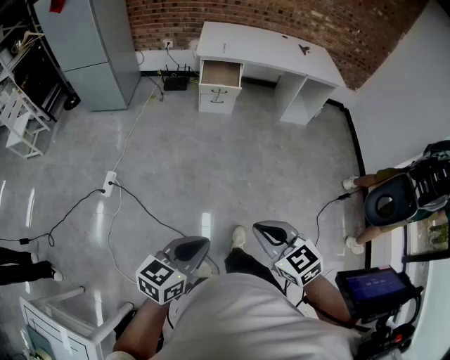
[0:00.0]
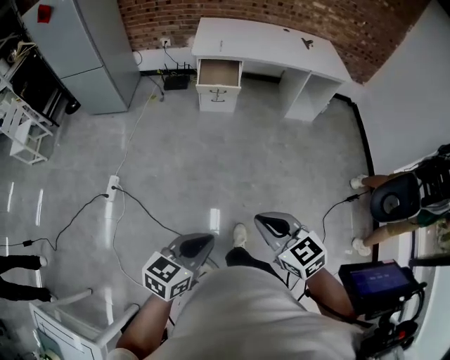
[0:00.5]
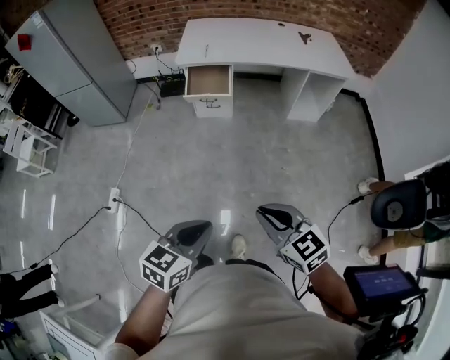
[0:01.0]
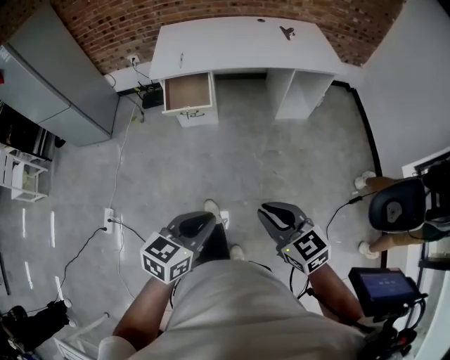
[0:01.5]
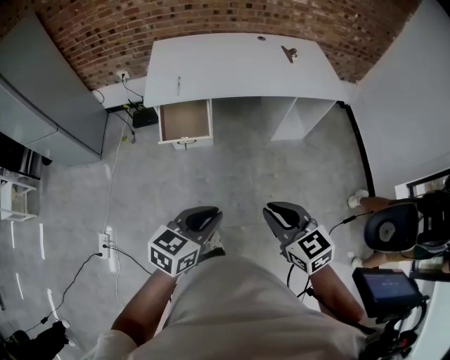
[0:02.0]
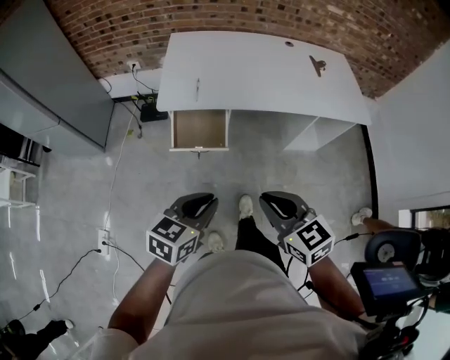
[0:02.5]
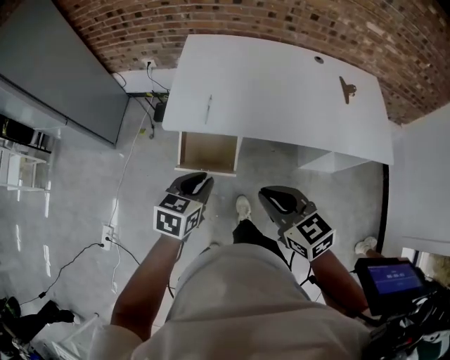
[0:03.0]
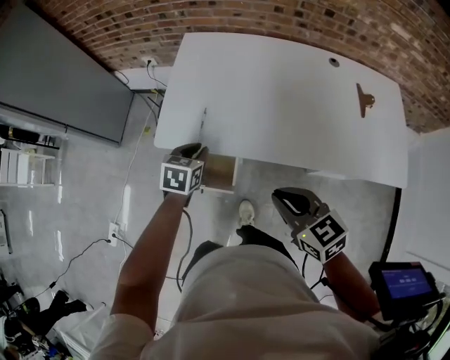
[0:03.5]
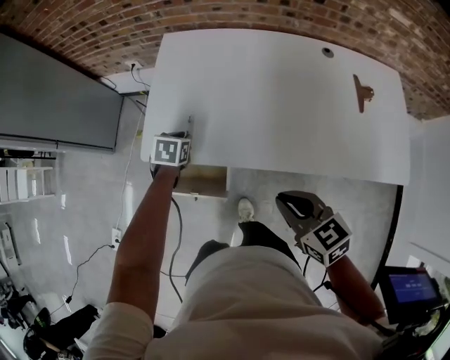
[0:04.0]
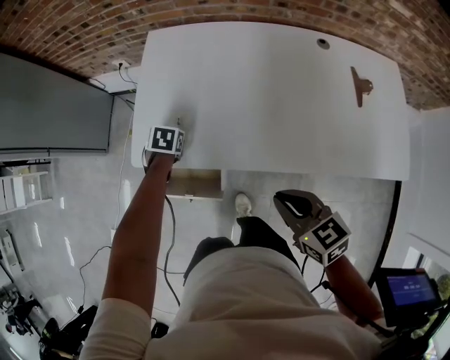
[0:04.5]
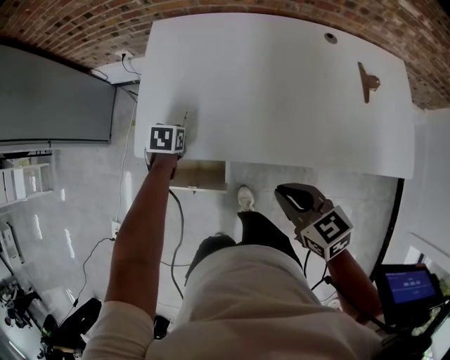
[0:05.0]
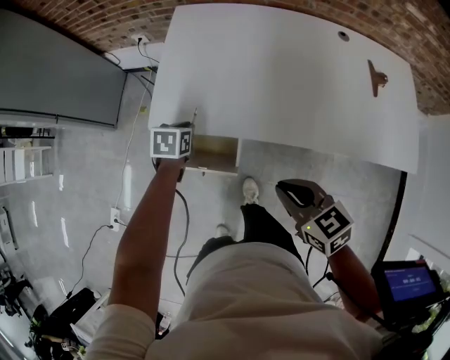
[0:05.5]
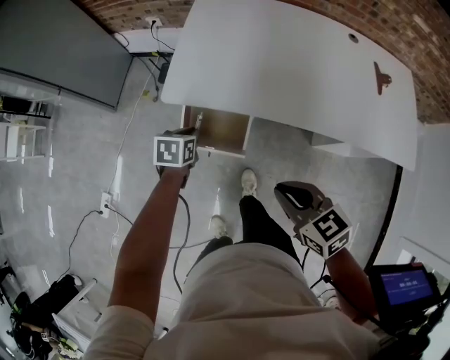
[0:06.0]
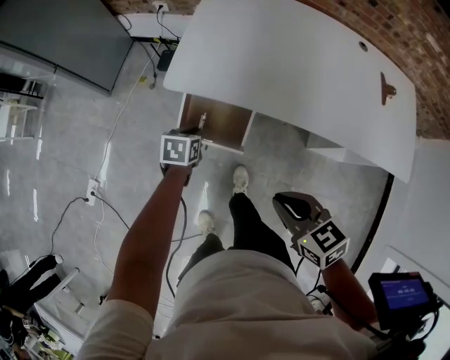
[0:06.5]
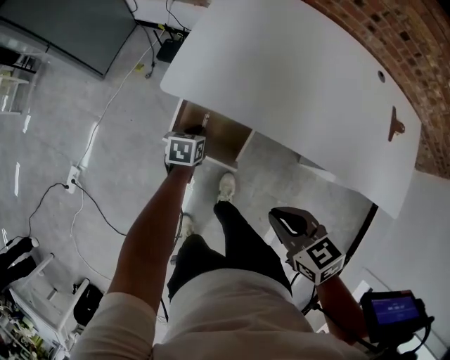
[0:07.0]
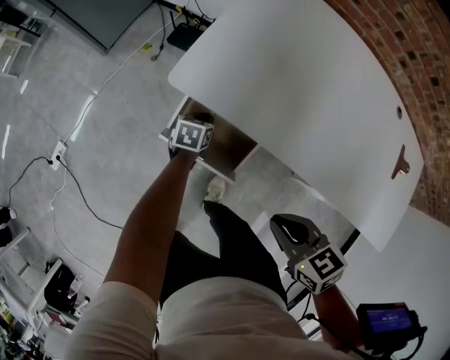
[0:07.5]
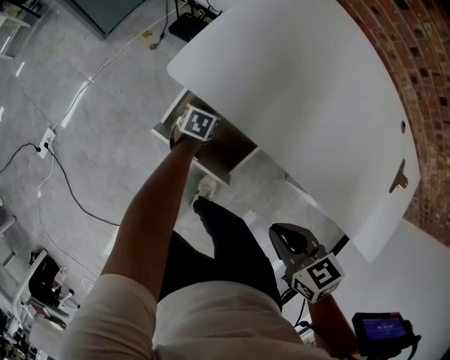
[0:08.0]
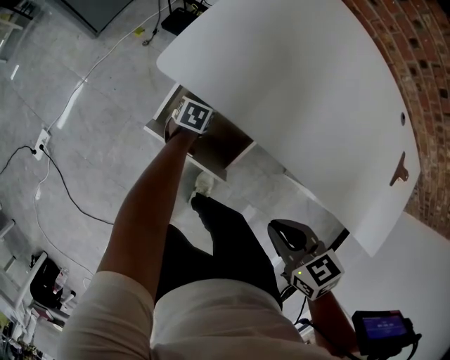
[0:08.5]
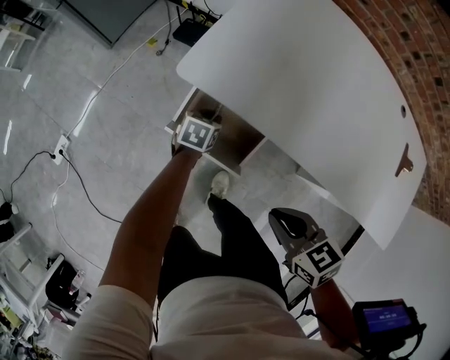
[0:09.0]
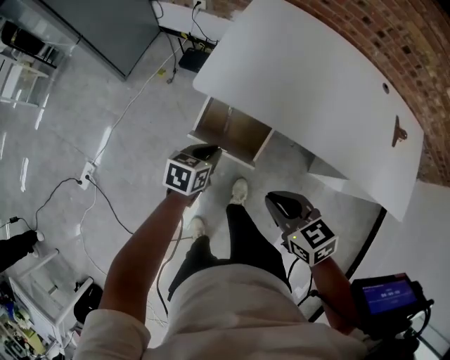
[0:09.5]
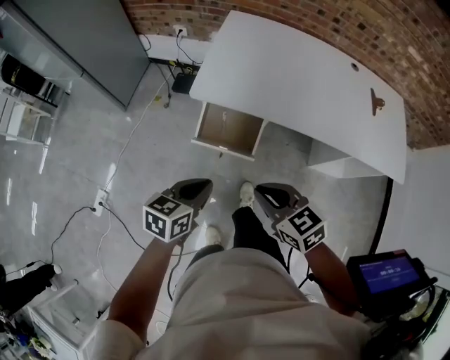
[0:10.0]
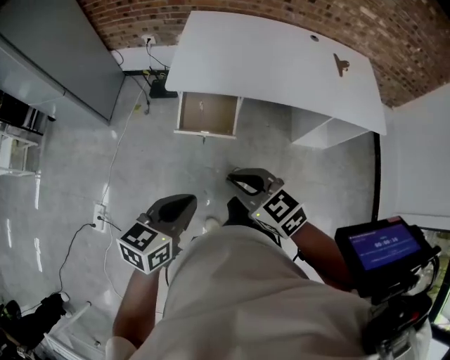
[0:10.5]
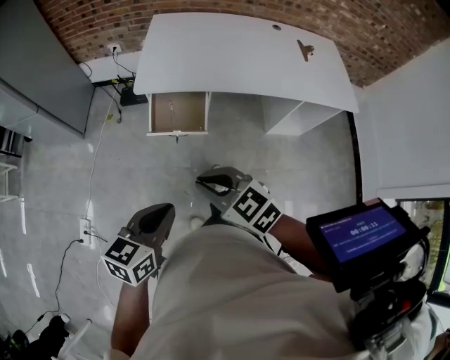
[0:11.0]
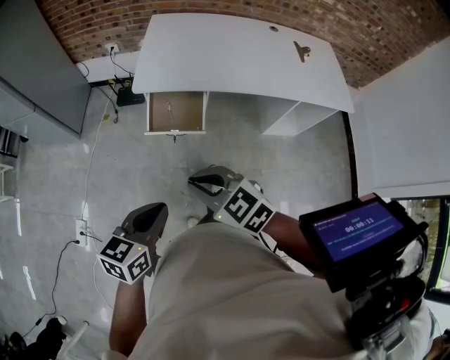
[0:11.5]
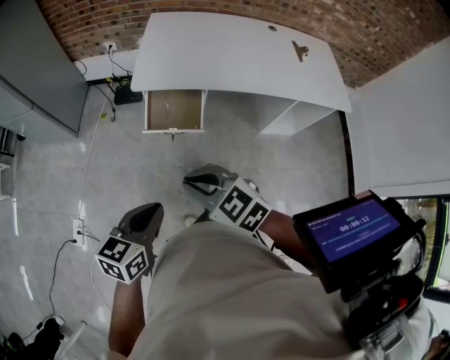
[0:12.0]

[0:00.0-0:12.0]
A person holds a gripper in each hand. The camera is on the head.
0:00.0 to 0:02.0: Both grippers are carried forward, roughly 60 cm.
0:02.0 to 0:04.0: The two grippers travel together, some 60 cm. The left gripper tips its fingers downward by some 40 degrees.
0:04.0 to 0:06.0: The right gripper moves to the left and backward, roughly 15 cm. The left gripper moves backward and to the left, some 20 cm.
0:06.0 to 0:08.0: The left gripper goes about 30 cm downward and forward, while the right gripper travels downward and forward by about 15 cm, and swivels approximately 20 degrees.
0:08.0 to 0:10.0: The right gripper moves to the left, upward and backward, approximately 25 cm, and swivels about 20 degrees, while the left gripper goes some 50 cm upward and backward, and turns by roughly 30 degrees.
0:10.0 to 0:12.0: The left gripper shifts approximately 15 cm backward, while the right gripper goes roughly 15 cm backward and to the left.

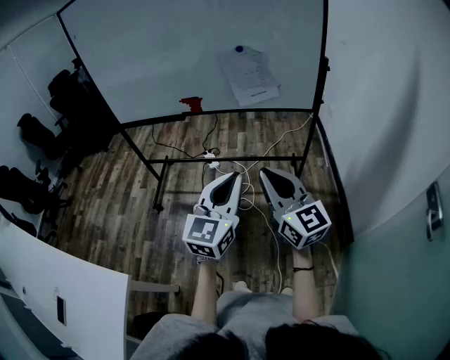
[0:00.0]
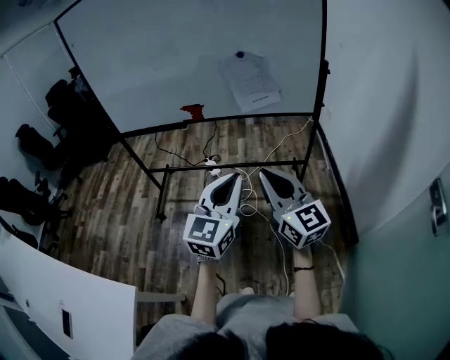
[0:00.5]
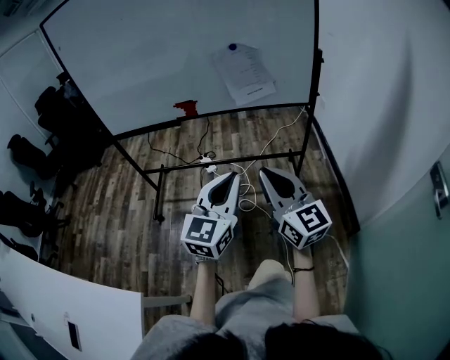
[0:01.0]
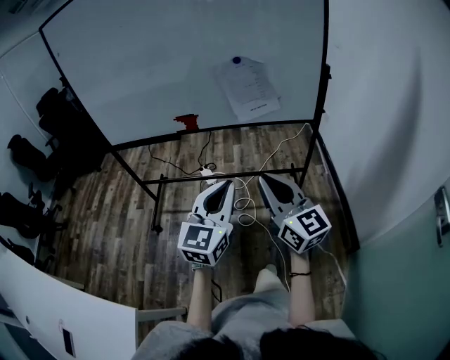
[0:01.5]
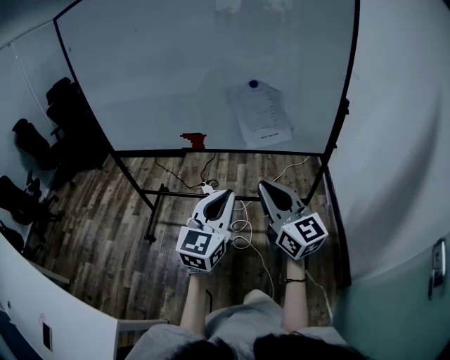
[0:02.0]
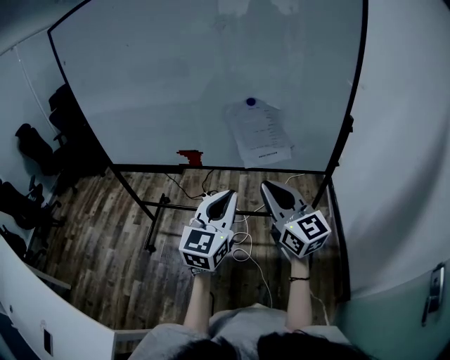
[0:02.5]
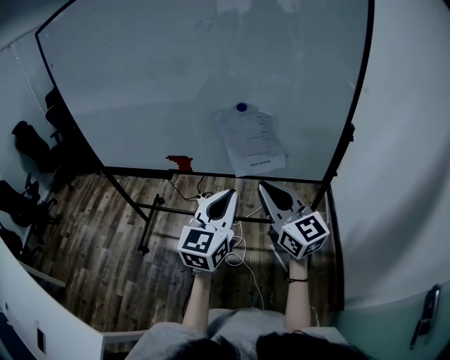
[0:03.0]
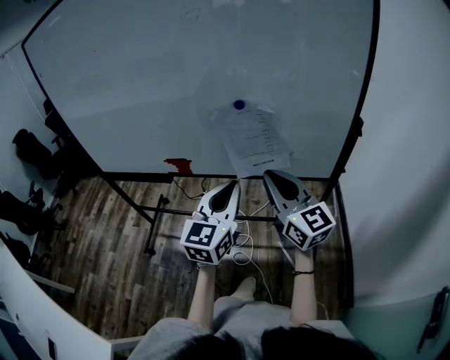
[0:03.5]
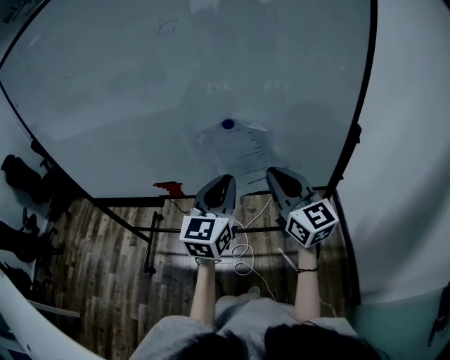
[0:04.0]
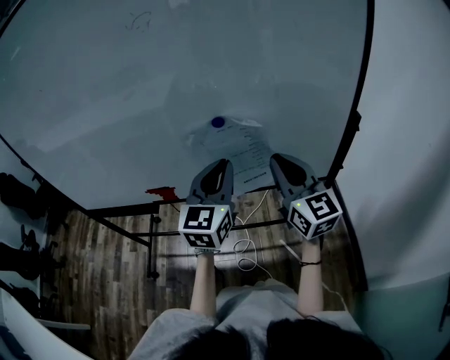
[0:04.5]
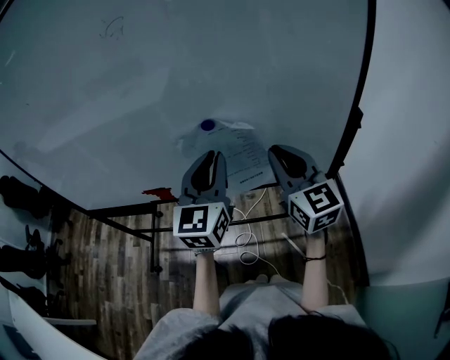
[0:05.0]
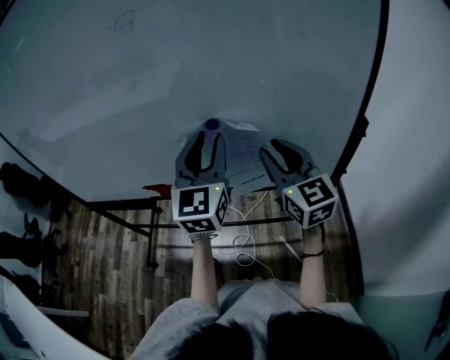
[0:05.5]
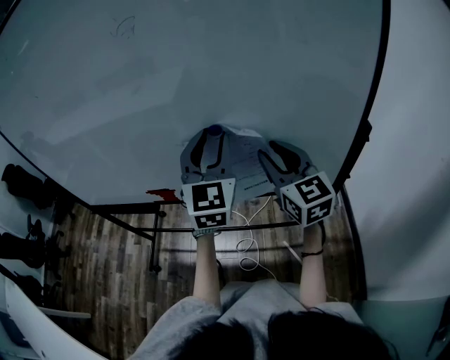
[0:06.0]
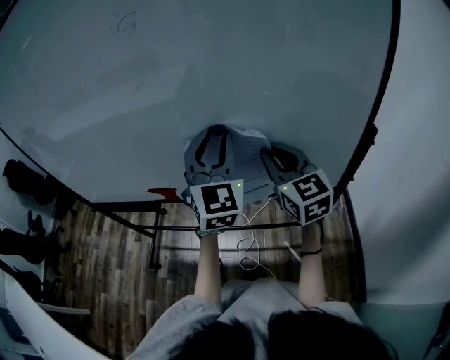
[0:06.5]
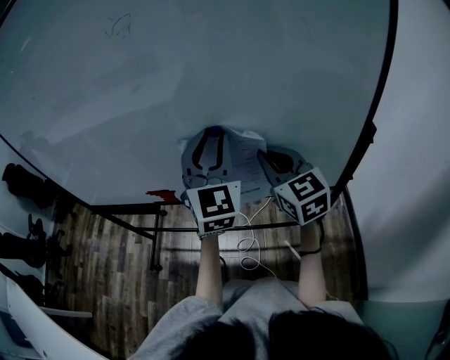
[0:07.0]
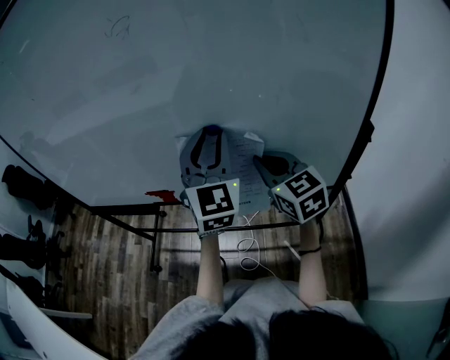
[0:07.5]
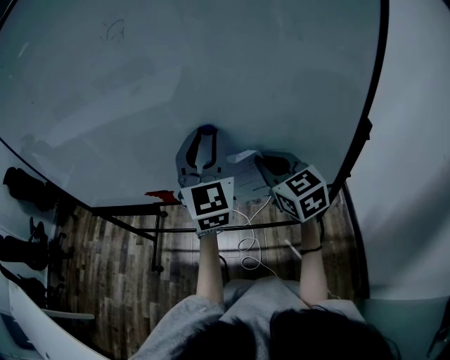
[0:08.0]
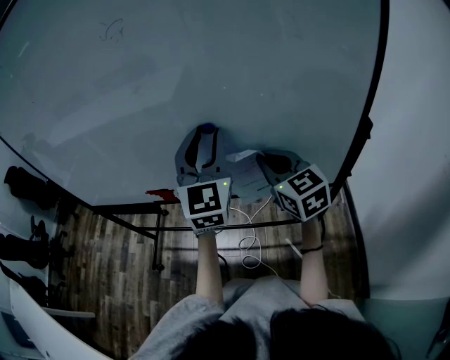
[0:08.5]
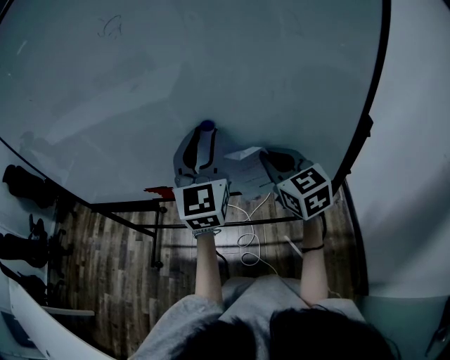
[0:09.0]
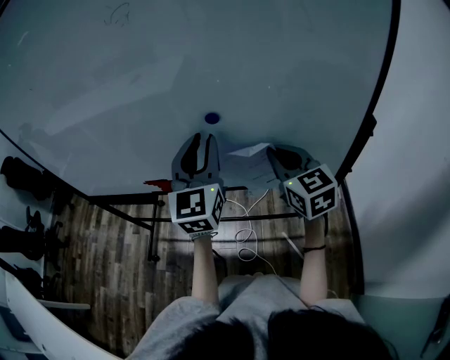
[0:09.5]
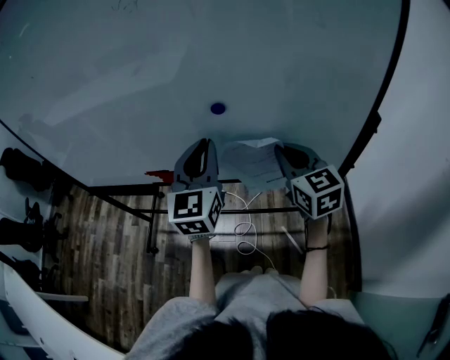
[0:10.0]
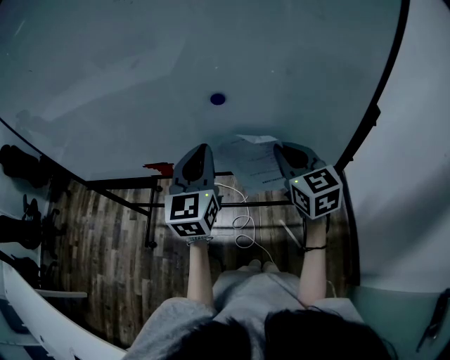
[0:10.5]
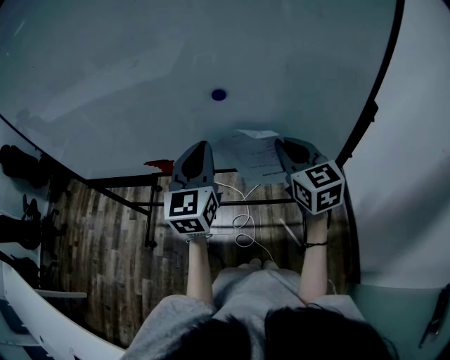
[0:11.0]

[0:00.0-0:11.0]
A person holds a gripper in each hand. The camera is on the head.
0:00.0 to 0:02.0: Both grippers travel together forward, about 15 cm.
0:02.0 to 0:03.5: The grippers both shift forward and to the right by some 20 cm.
0:03.5 to 0:05.5: The right gripper is displaced forward by approximately 15 cm, and opens up. Meanwhile the left gripper heads forward and upward, covering roughly 20 cm, and opens up.
0:05.5 to 0:07.5: The right gripper moves some 5 cm, and closes its fingers.
0:07.5 to 0:09.0: There are only small adjustments of the grippers.
0:09.0 to 0:11.0: The left gripper shifts roughly 10 cm downward and to the left, and closes.

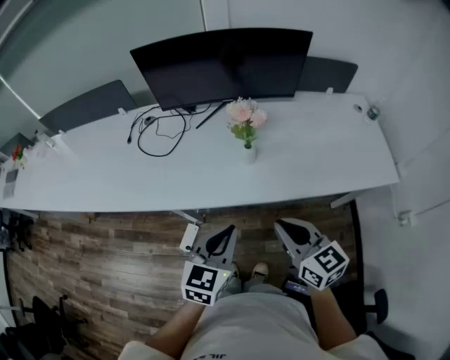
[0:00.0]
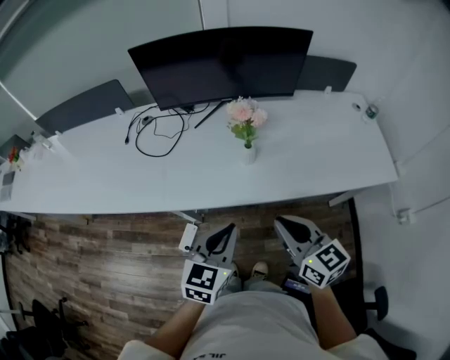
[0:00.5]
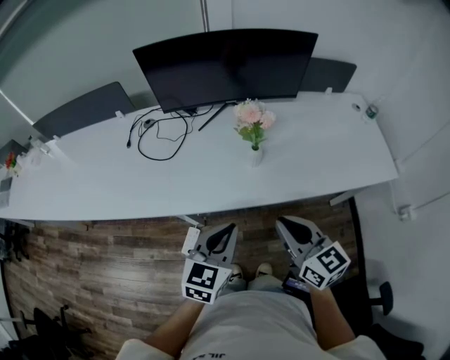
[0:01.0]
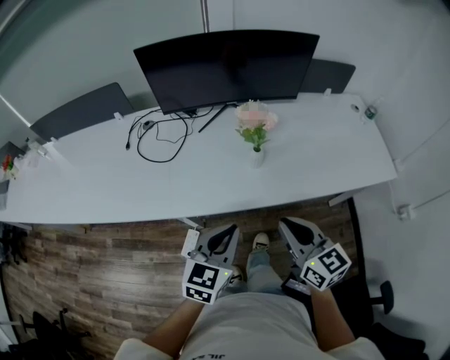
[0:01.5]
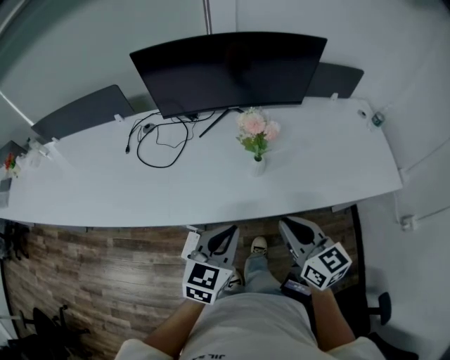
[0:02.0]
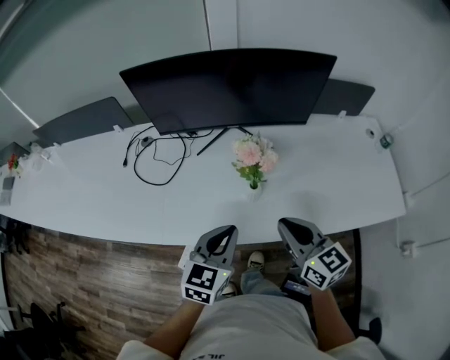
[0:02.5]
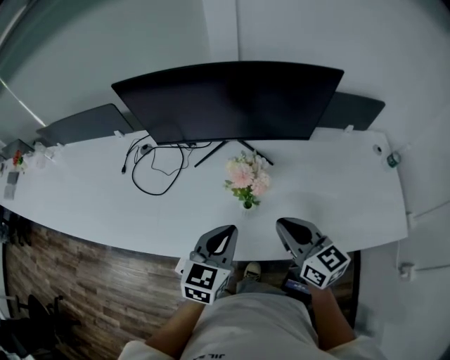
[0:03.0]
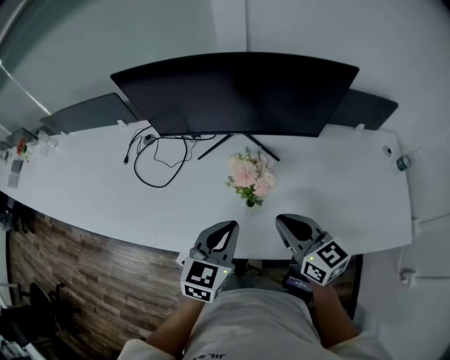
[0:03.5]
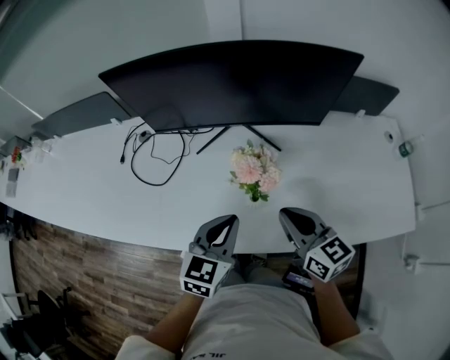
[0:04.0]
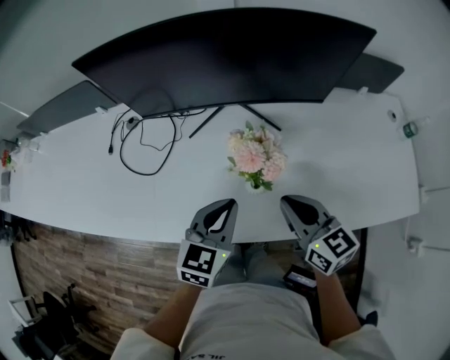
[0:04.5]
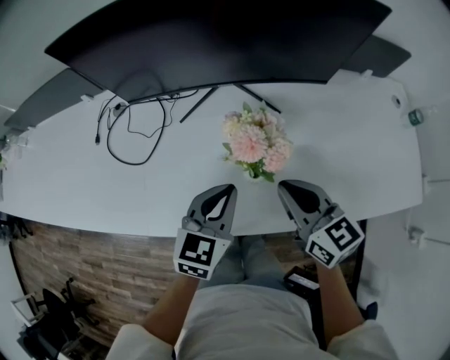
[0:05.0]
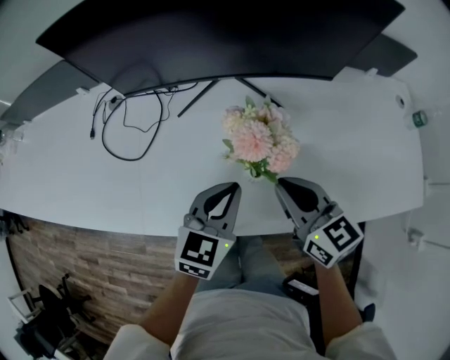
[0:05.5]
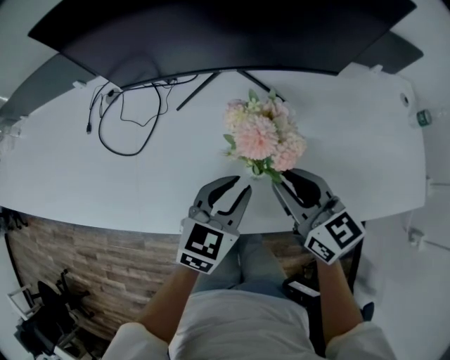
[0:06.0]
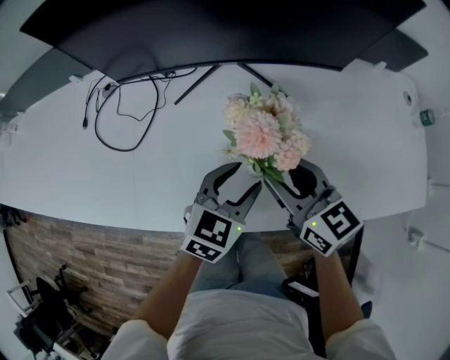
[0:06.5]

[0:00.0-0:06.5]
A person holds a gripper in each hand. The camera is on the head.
0:00.0 to 0:02.0: Both grippers travel together forward, roughly 5 cm.
0:02.0 to 0:04.5: Both grippers move forward, some 20 cm.
0:04.5 to 0:06.5: The right gripper moves roughly 5 cm, and opens its fingers. The left gripper is displaced downward by some 10 cm, and opens its fingers.
